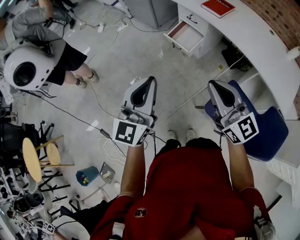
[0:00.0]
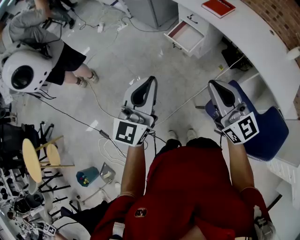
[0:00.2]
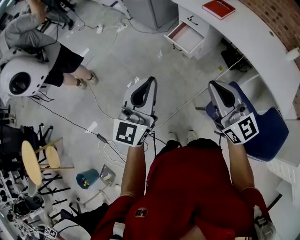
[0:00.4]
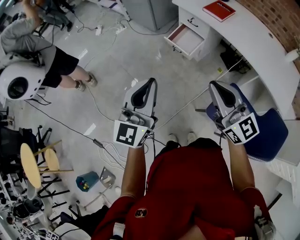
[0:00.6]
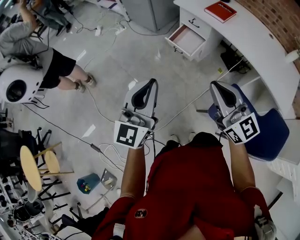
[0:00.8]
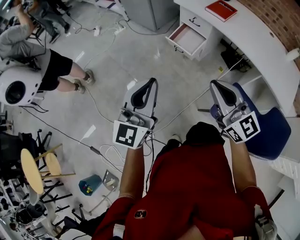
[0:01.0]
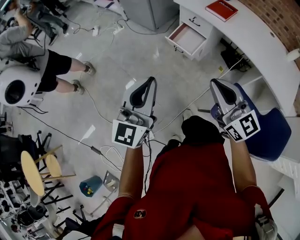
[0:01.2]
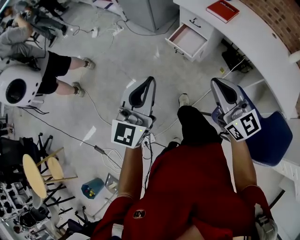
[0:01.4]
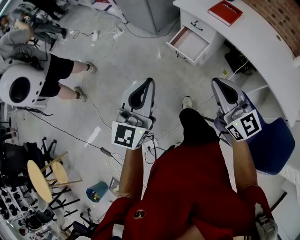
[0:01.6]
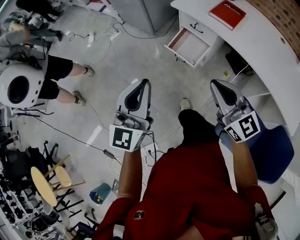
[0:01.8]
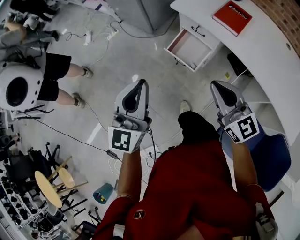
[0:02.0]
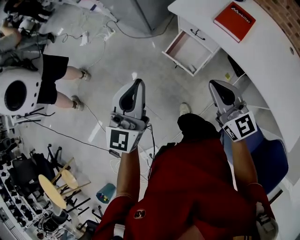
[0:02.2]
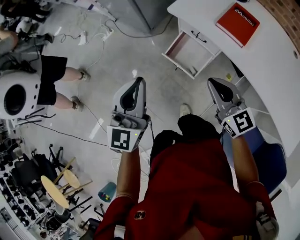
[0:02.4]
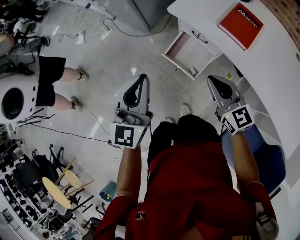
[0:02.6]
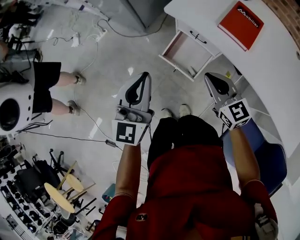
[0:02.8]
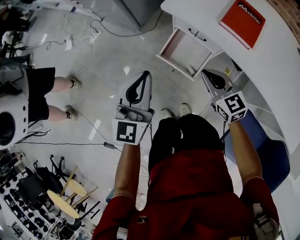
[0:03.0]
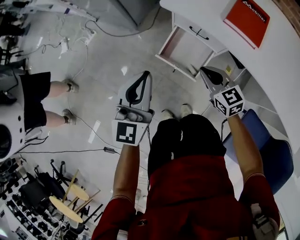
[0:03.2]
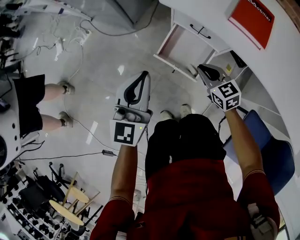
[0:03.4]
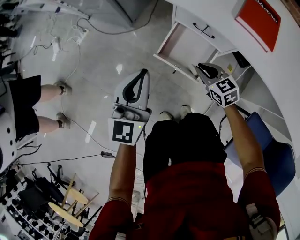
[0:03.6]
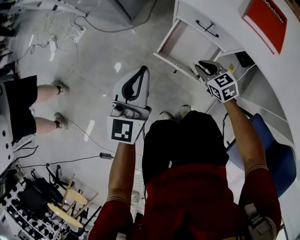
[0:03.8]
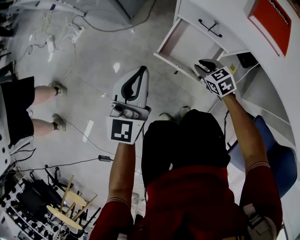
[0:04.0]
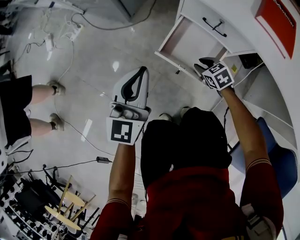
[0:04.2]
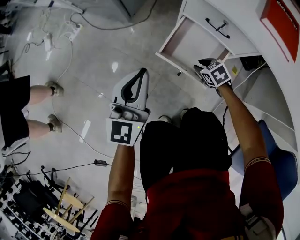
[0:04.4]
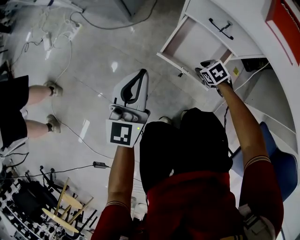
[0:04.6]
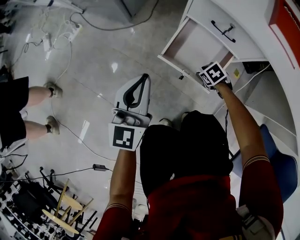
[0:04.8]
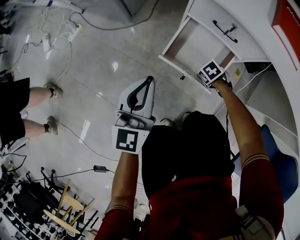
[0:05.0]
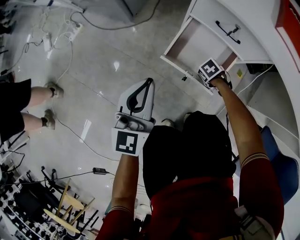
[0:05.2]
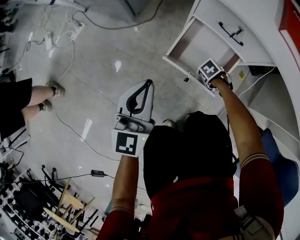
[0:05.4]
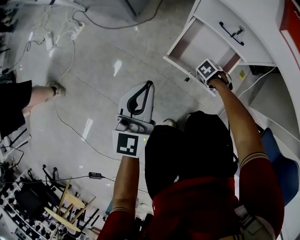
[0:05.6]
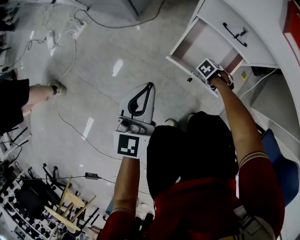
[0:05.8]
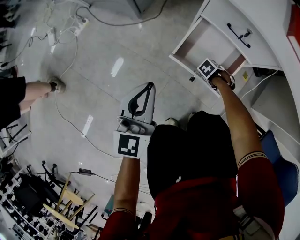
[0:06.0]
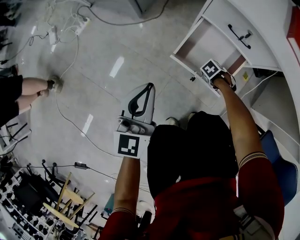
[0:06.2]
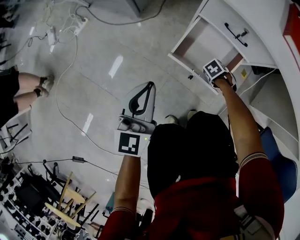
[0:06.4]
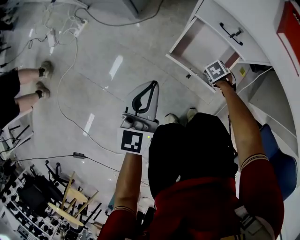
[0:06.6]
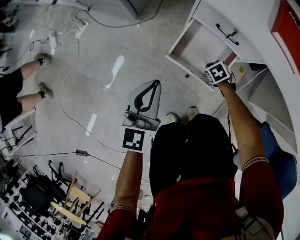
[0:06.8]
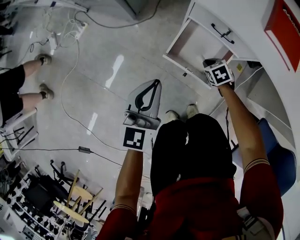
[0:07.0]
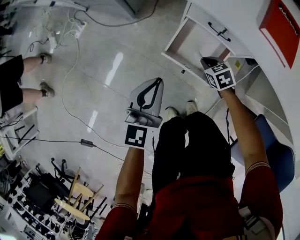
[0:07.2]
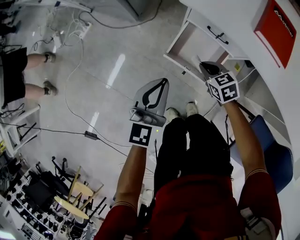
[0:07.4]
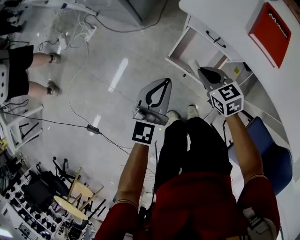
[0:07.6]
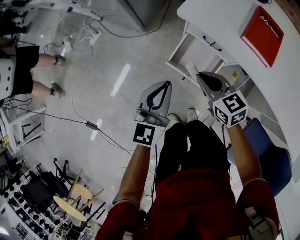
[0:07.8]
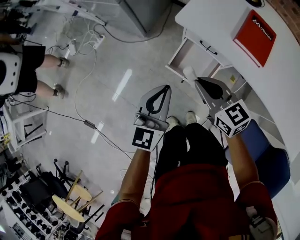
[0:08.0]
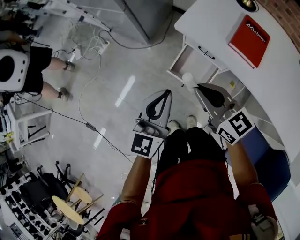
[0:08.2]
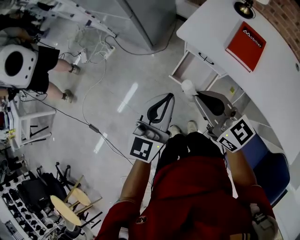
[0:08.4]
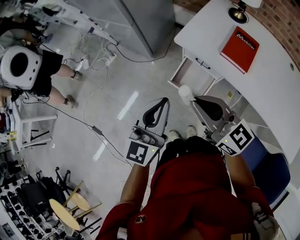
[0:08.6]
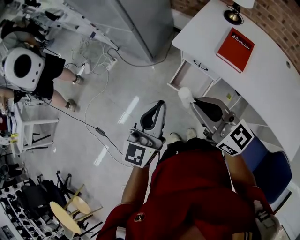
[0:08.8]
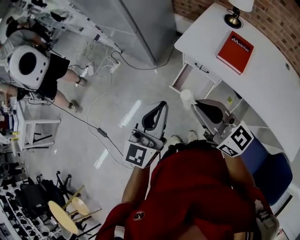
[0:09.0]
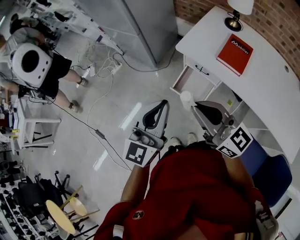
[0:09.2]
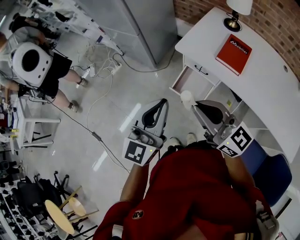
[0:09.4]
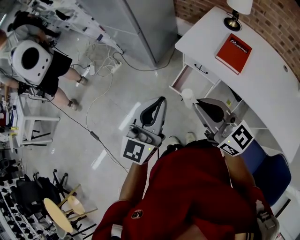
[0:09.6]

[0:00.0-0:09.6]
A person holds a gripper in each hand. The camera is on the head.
0:00.0 to 0:01.6: The right gripper heads forward, covering about 15 cm. Meanwhile the left gripper shifts approximately 15 cm forward and to the left.
0:01.6 to 0:03.2: The two grippers travel together, forward, about 40 cm. The right gripper travels downward by approximately 30 cm, and angles its fingers downward, by roughly 30 degrees, while the left gripper shifts roughly 20 cm downward.
0:03.2 to 0:04.8: The left gripper heads downward, covering some 20 cm. Meanwhile the right gripper moves downward, some 35 cm, points its fingers about 50 degrees further downward, and opens its fingers.
0:04.8 to 0:06.4: The right gripper closes its fingers.
0:06.4 to 0:08.0: The right gripper travels upward by some 50 cm, and points its fingers some 60 degrees further upward. The left gripper goes approximately 20 cm upward.
0:08.0 to 0:09.6: The grippers both shift upward and backward by some 25 cm. The right gripper rotates approximately 30 degrees.

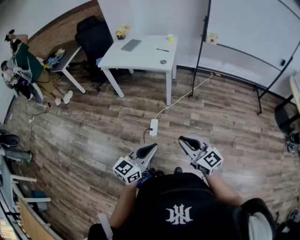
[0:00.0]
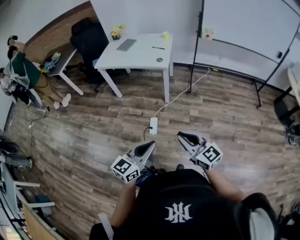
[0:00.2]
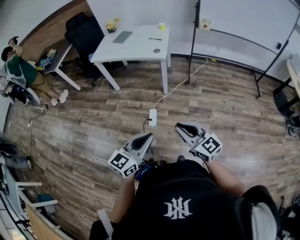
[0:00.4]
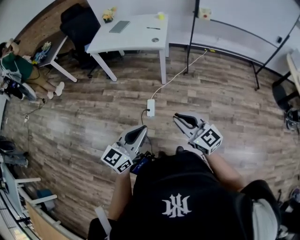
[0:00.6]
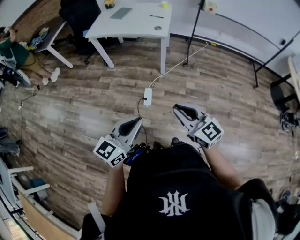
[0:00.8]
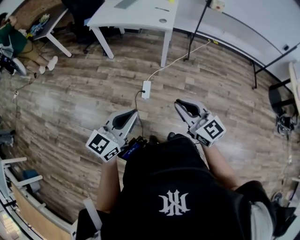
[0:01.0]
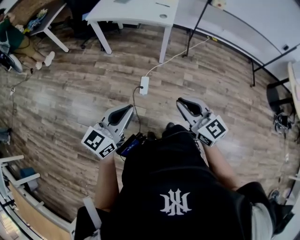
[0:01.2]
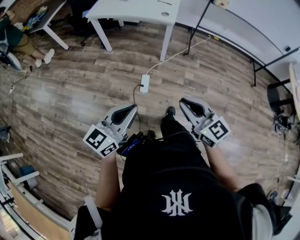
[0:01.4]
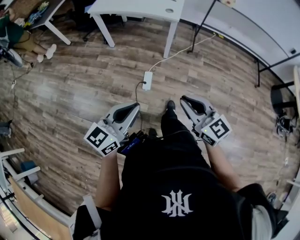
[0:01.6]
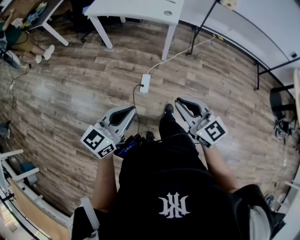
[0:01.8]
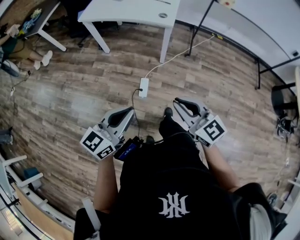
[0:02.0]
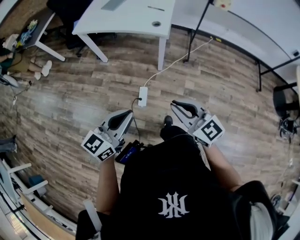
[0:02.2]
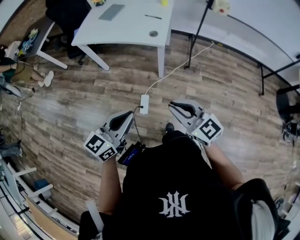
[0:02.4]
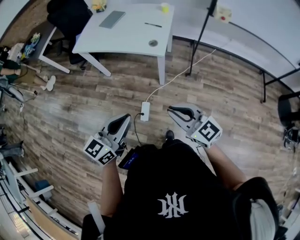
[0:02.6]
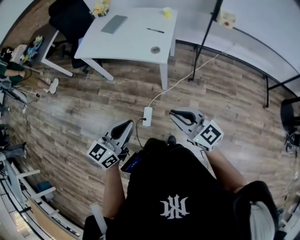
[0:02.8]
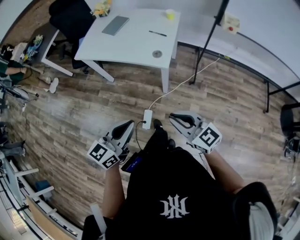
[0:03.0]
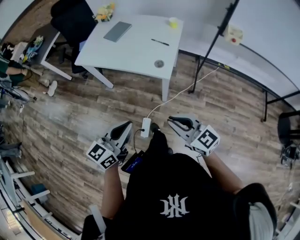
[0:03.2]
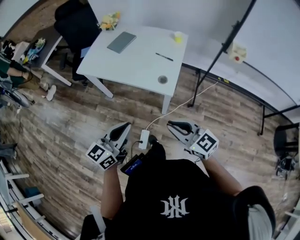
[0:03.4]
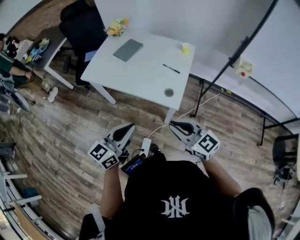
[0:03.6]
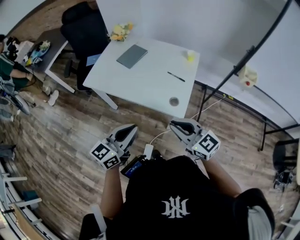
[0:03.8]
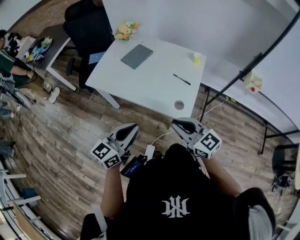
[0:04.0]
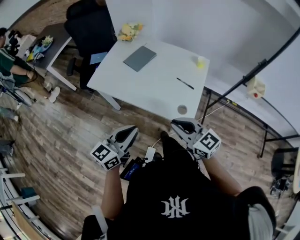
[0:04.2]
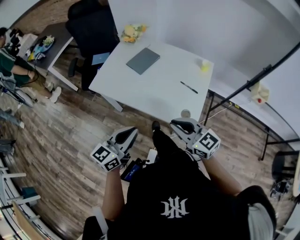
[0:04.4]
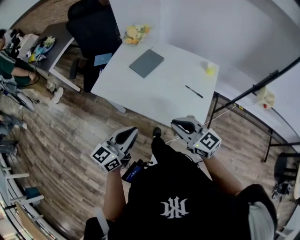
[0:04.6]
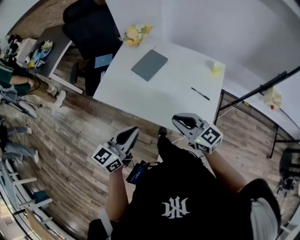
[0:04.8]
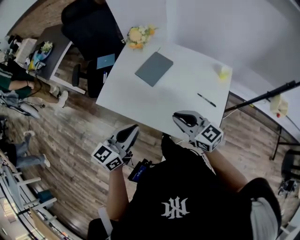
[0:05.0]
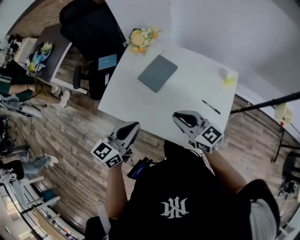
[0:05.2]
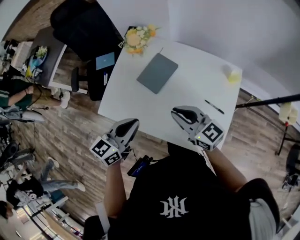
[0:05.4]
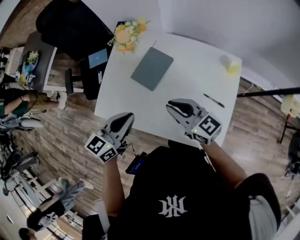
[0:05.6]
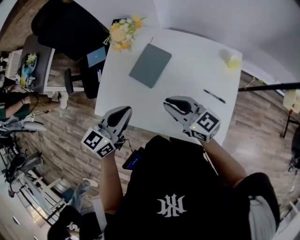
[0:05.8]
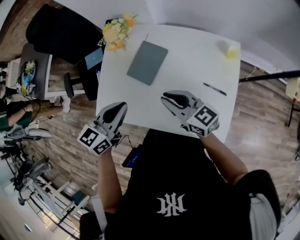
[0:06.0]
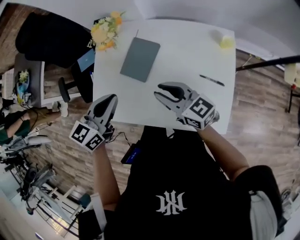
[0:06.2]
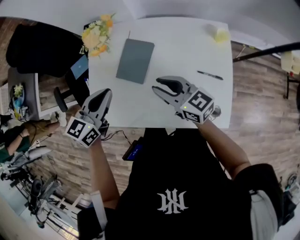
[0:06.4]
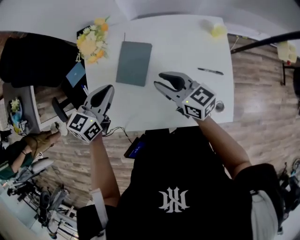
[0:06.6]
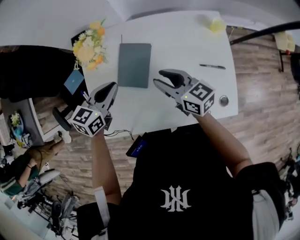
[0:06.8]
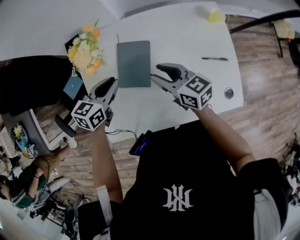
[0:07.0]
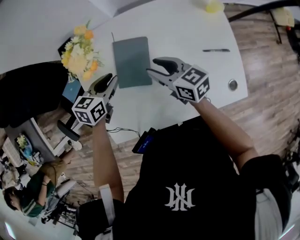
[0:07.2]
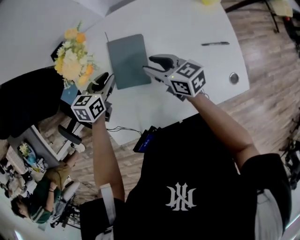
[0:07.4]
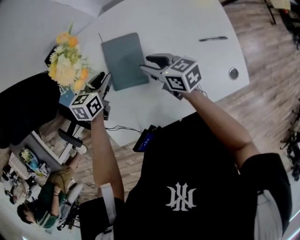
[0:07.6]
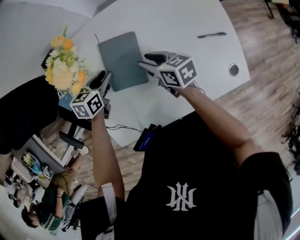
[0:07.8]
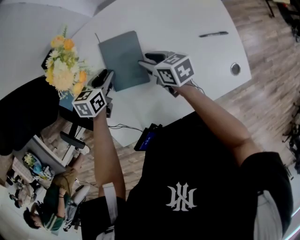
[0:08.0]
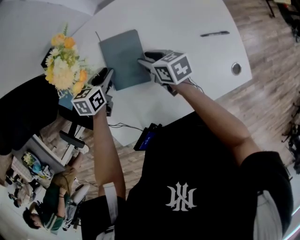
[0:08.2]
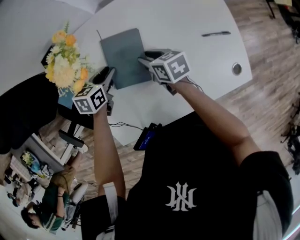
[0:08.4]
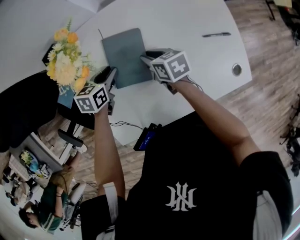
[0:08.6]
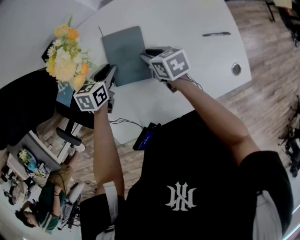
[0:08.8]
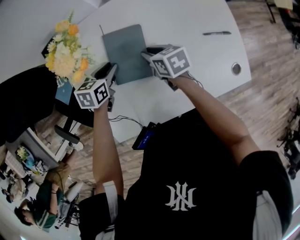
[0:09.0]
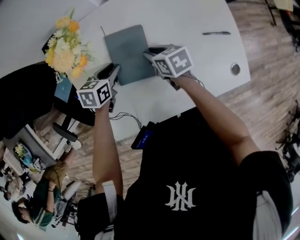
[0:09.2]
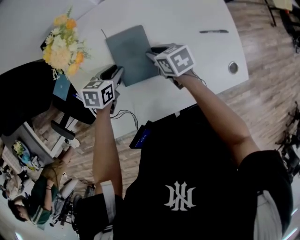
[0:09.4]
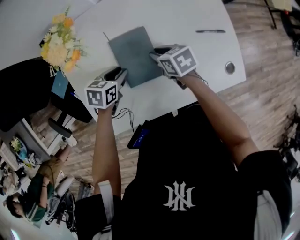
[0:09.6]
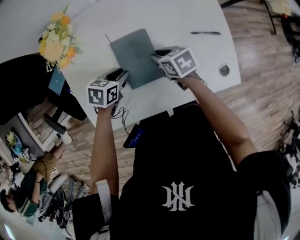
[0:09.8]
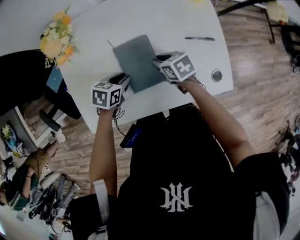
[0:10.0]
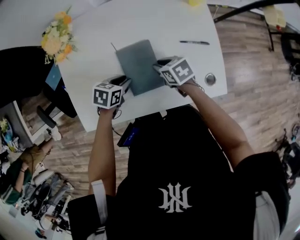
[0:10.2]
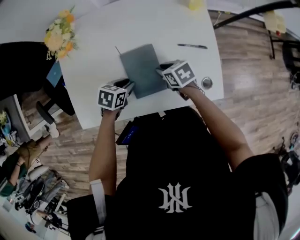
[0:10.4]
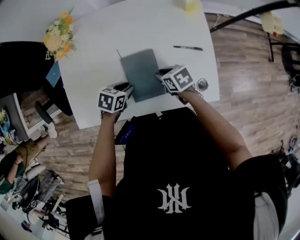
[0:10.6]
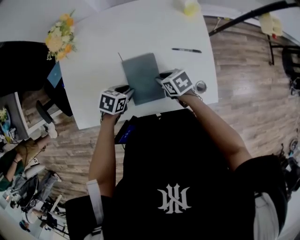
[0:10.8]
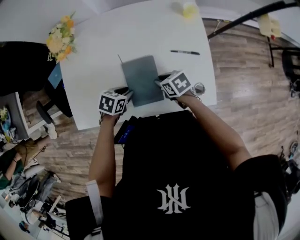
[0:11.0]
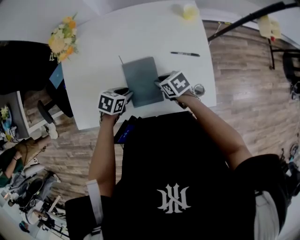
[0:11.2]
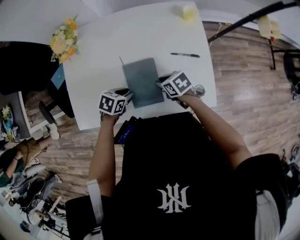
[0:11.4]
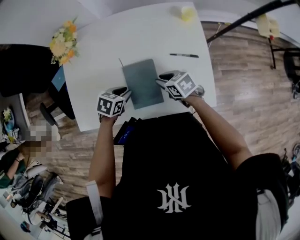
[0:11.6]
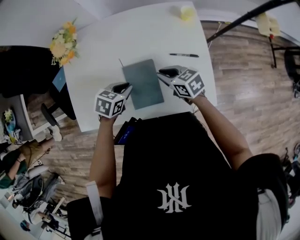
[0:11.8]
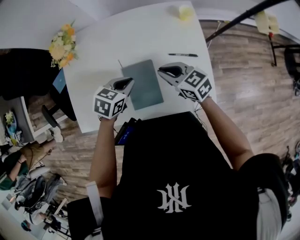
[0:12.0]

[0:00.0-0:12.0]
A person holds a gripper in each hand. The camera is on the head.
0:00.0 to 0:01.6: The left gripper heads to the left, covering roughly 10 cm, while the right gripper heads to the left, covering some 5 cm.
0:01.6 to 0:03.0: Both grippers travel together forward, approximately 30 cm.
0:03.0 to 0:04.4: The two grippers go approximately 35 cm forward.
0:04.4 to 0:06.0: The two grippers go roughly 30 cm forward. The left gripper swivels some 20 degrees, while the right gripper swivels roughly 20 degrees.
0:06.0 to 0:07.6: The grippers both shift downward by approximately 20 cm. The left gripper turns by roughly 30 degrees, and opens, while the right gripper turns by some 40 degrees, and opens up.
0:07.6 to 0:09.0: The right gripper heads downward, covering about 5 cm.
0:09.0 to 0:10.4: The right gripper changes place by some 20 cm, and swivels some 20 degrees; the left gripper ends up approximately 20 cm from where it was.
0:10.4 to 0:12.0: Both grippers travel together upward, some 10 cm. The left gripper closes; the right gripper rotates about 30 degrees.

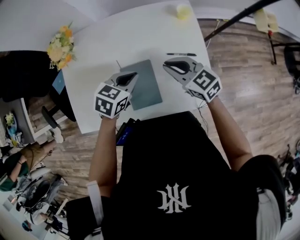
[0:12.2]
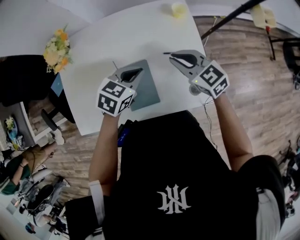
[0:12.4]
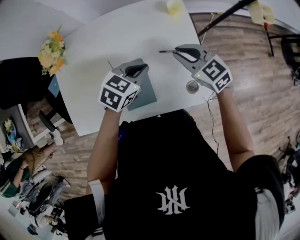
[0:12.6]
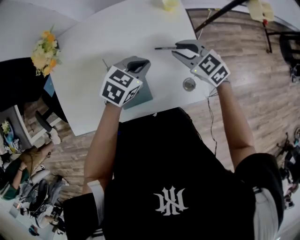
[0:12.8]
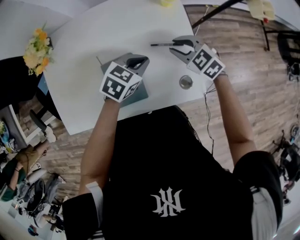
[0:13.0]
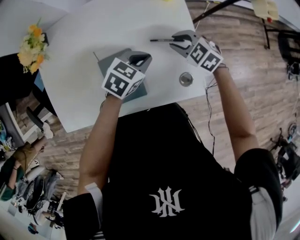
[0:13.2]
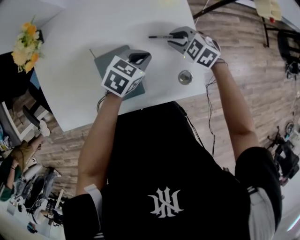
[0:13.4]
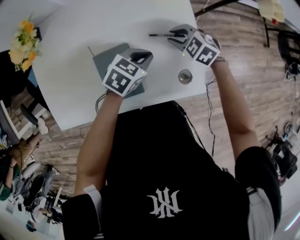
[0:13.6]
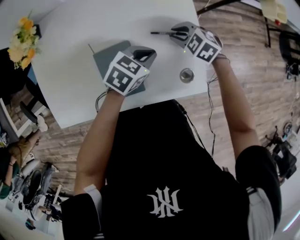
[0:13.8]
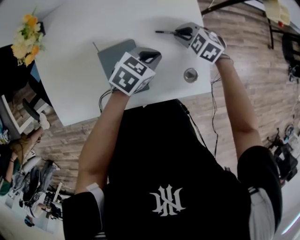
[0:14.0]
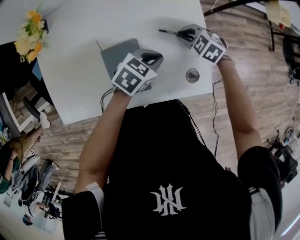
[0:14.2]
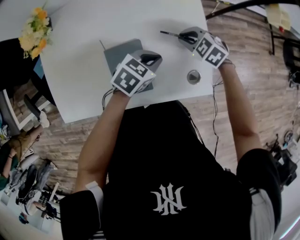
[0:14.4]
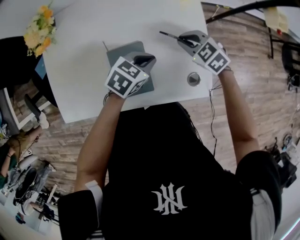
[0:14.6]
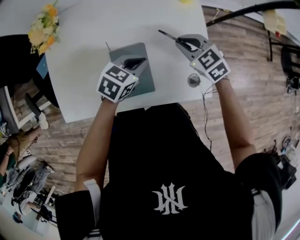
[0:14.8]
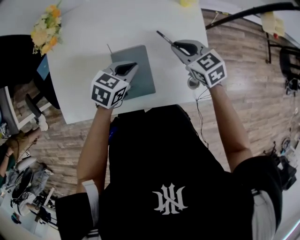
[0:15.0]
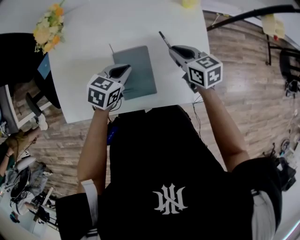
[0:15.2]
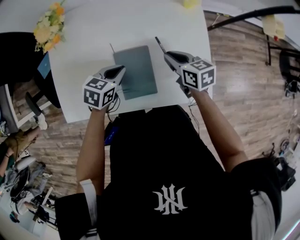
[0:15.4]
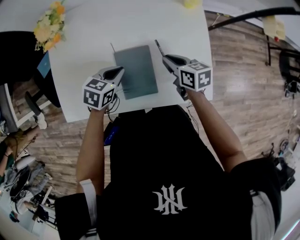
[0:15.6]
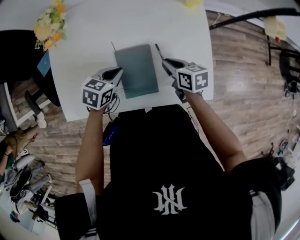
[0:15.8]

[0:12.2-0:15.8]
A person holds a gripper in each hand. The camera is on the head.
0:12.2 to 0:14.0: The right gripper goes roughly 15 cm downward, and angles its fingers downward, by some 30 degrees; the left gripper changes place by some 15 cm.
0:14.0 to 0:15.8: The right gripper moves some 10 cm upward and comes back, and twists approximately 60 degrees clockwise, seen from behind; the left gripper ends up about 20 cm from where it was, and rotates about 20 degrees.
